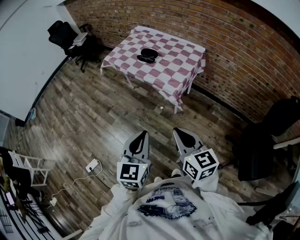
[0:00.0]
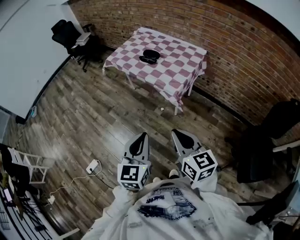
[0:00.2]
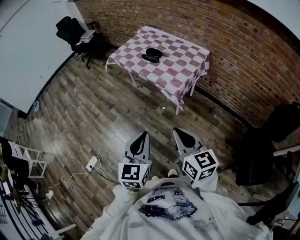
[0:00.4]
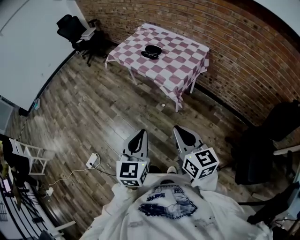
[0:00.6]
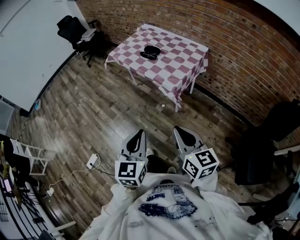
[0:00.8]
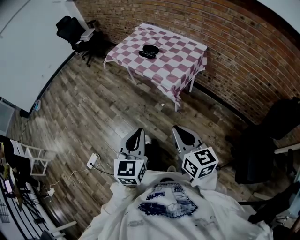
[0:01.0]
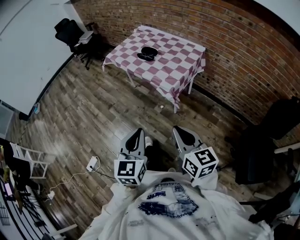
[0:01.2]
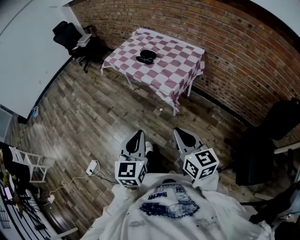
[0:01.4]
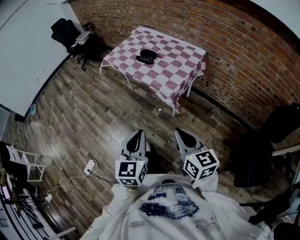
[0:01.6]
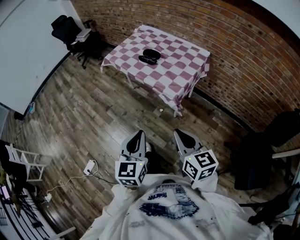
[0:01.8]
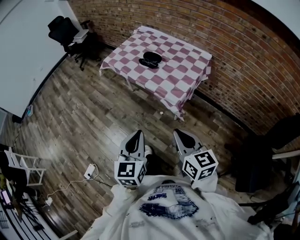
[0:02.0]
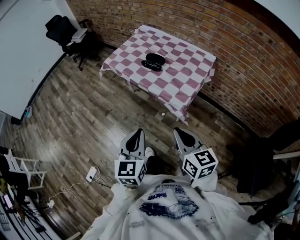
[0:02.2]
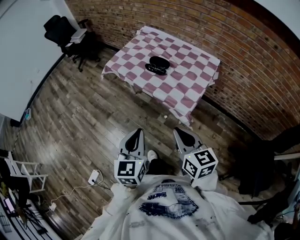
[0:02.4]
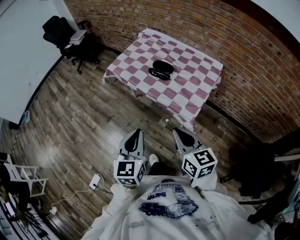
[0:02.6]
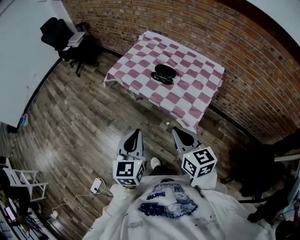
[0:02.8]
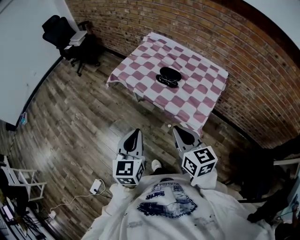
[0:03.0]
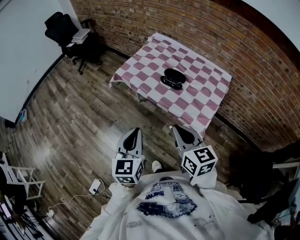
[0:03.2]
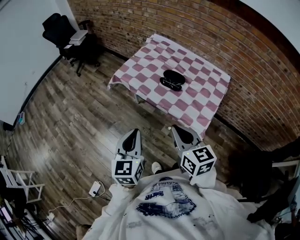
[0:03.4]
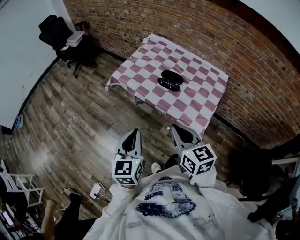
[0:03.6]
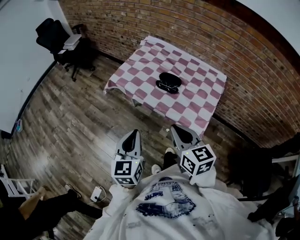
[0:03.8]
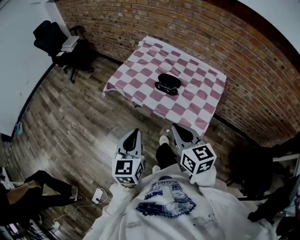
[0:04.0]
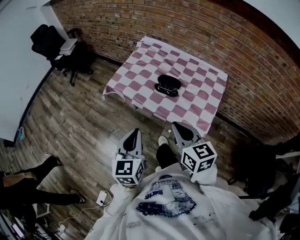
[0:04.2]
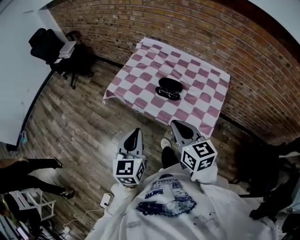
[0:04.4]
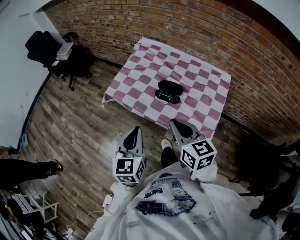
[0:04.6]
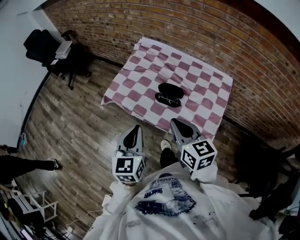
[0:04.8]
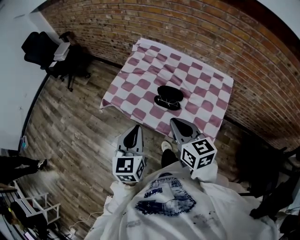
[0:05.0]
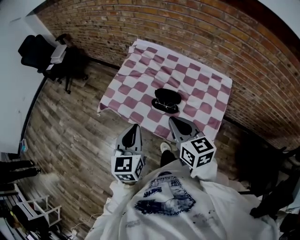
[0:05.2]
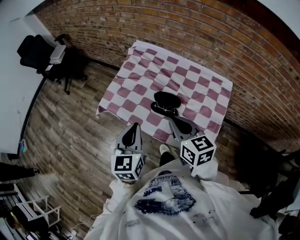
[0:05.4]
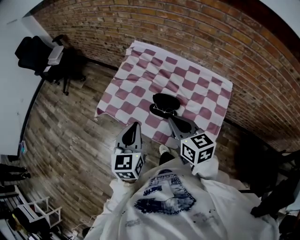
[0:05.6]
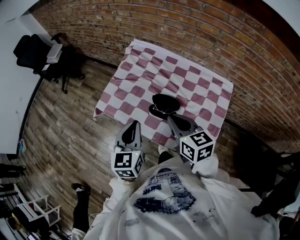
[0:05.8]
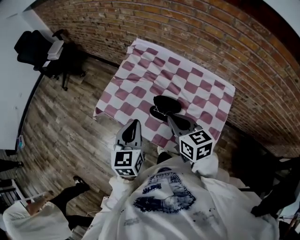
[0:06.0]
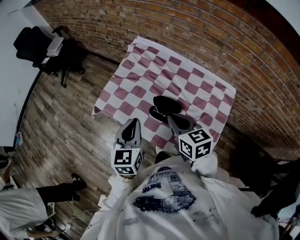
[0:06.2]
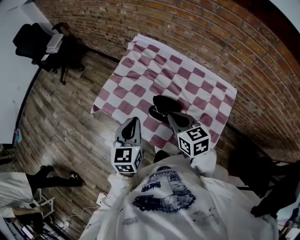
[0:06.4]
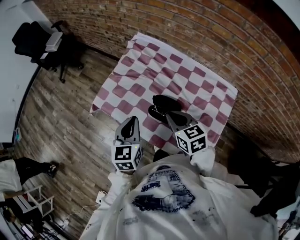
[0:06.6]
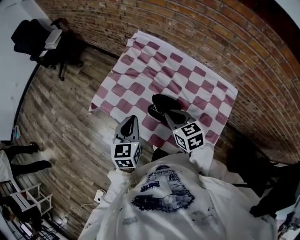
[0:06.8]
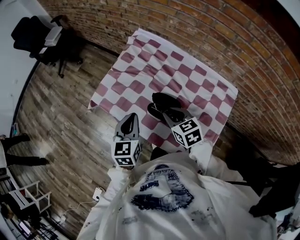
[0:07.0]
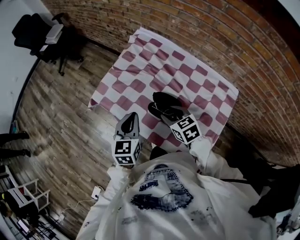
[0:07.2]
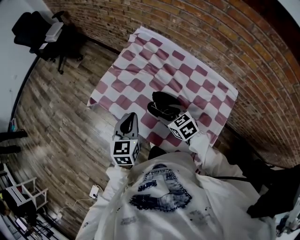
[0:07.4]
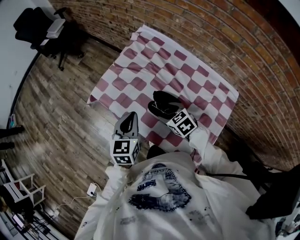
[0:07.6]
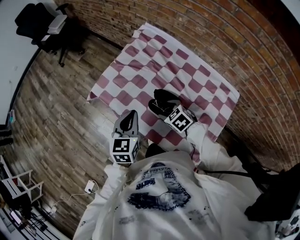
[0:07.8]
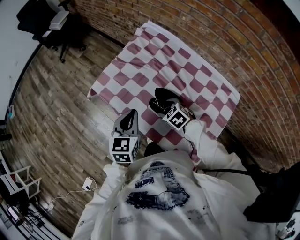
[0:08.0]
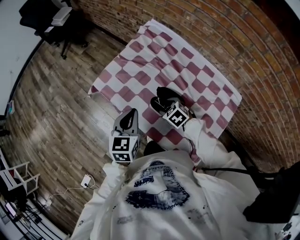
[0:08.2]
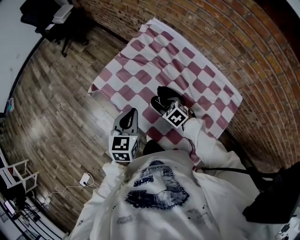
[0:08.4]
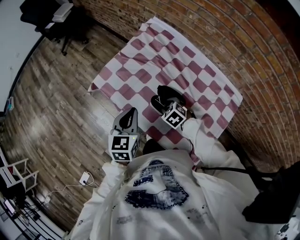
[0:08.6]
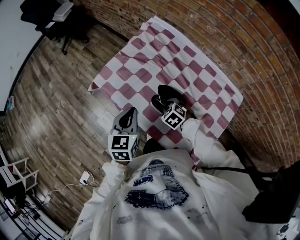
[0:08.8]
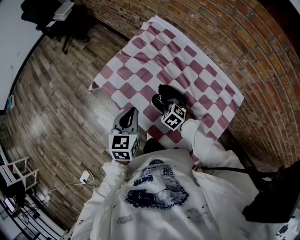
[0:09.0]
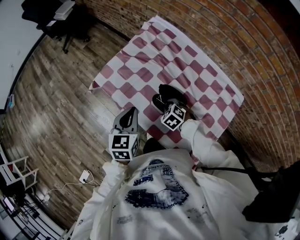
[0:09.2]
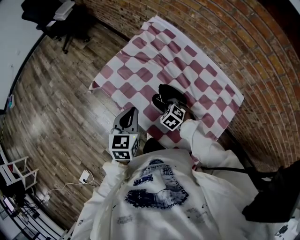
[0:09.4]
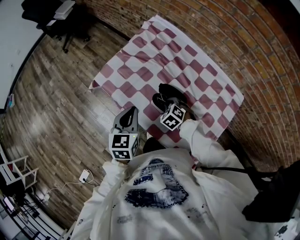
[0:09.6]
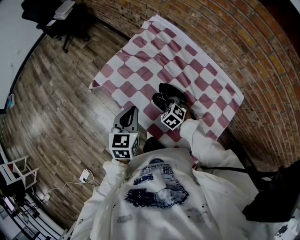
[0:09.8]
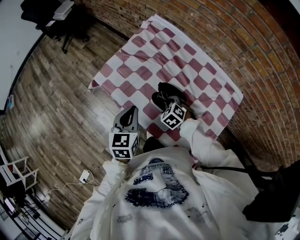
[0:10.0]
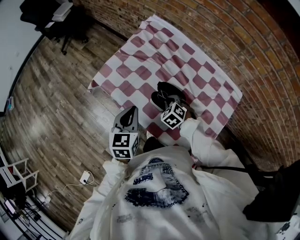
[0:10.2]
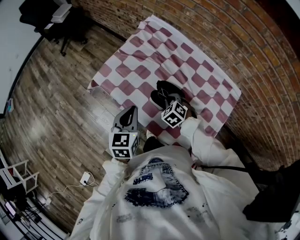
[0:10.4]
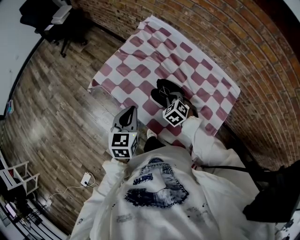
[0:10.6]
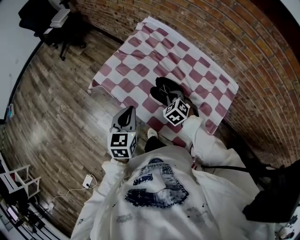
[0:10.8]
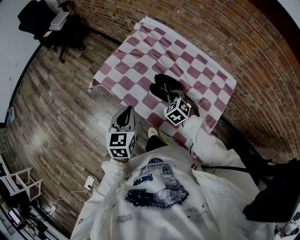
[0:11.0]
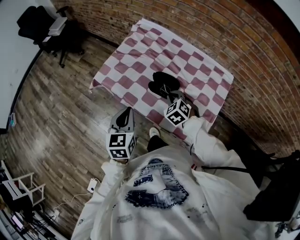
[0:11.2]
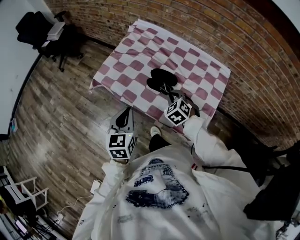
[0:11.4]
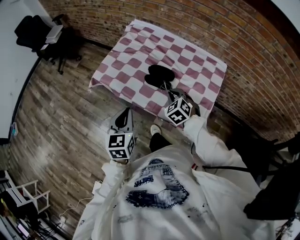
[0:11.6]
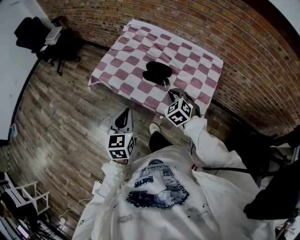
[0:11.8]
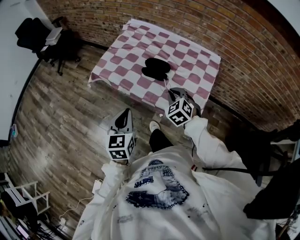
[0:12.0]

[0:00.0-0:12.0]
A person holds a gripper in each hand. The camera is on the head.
0:00.0 to 0:01.6: The right gripper changes place by about 5 cm.
0:01.6 to 0:03.0: The grippers both shift forward and to the left by about 35 cm.
0:03.0 to 0:04.4: Both grippers move forward, roughly 15 cm.
0:04.4 to 0:06.0: Both grippers travel together forward, approximately 20 cm.
0:06.0 to 0:07.6: The left gripper shifts some 10 cm downward; the right gripper heads downward, covering approximately 20 cm, swivels roughly 40 degrees, and opens.
0:07.6 to 0:09.0: The right gripper travels downward by some 10 cm, swivels about 30 degrees, and closes.
0:09.0 to 0:10.4: The grippers move only a little.
0:10.4 to 0:12.0: The right gripper goes about 25 cm backward and upward, and turns by roughly 20 degrees; the left gripper shifts roughly 20 cm backward.

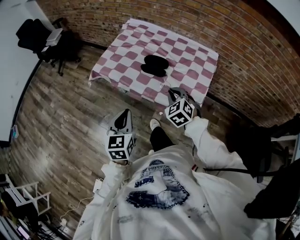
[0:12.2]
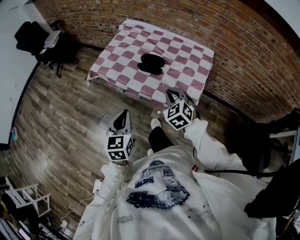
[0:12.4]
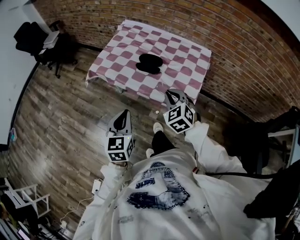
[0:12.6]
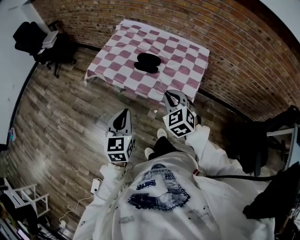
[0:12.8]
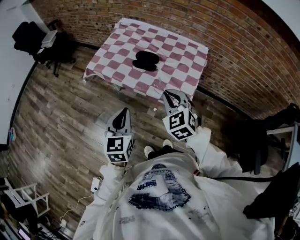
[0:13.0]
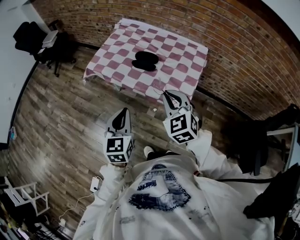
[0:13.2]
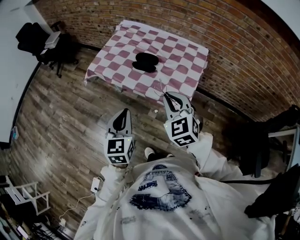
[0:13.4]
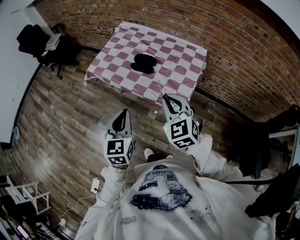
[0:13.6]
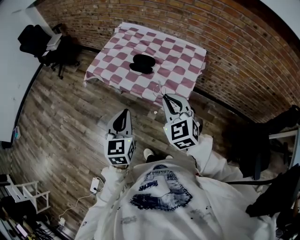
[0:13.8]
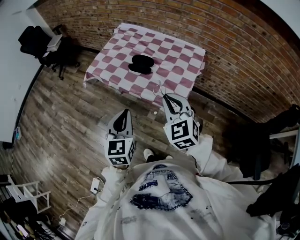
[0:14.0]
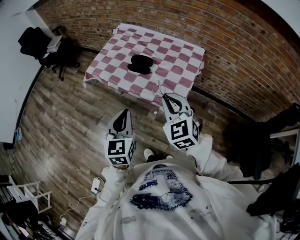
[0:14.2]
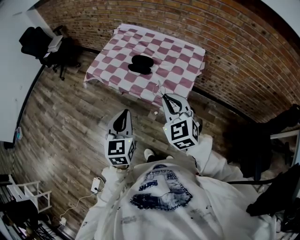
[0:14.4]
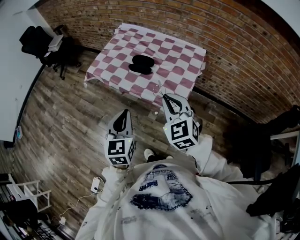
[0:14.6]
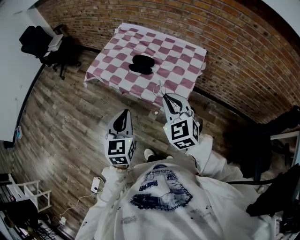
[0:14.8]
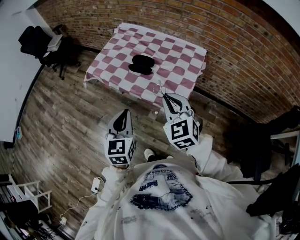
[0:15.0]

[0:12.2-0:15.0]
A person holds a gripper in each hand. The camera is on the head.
0:12.2 to 0:13.6: The right gripper travels upward and backward by about 20 cm. The left gripper is displaced to the right, backward and upward by approximately 10 cm.
0:13.6 to 0:15.0: The grippers make only small movements.

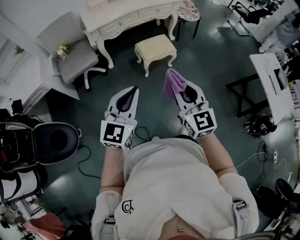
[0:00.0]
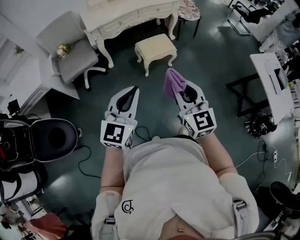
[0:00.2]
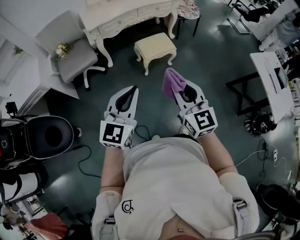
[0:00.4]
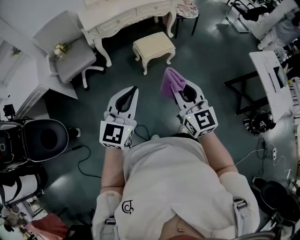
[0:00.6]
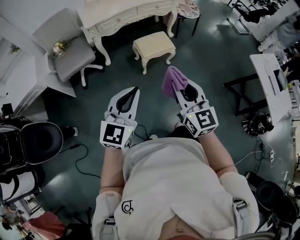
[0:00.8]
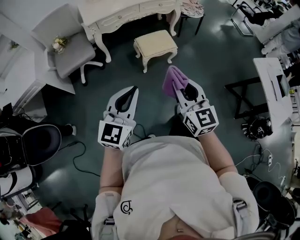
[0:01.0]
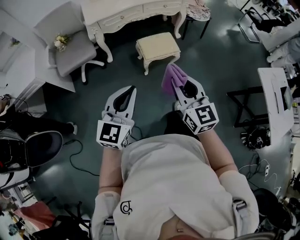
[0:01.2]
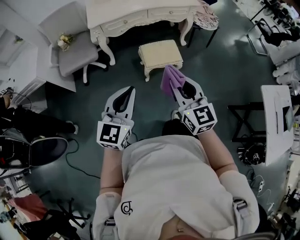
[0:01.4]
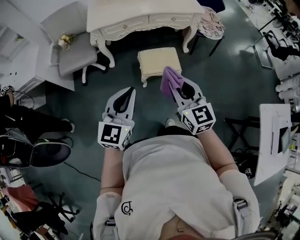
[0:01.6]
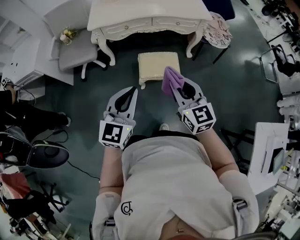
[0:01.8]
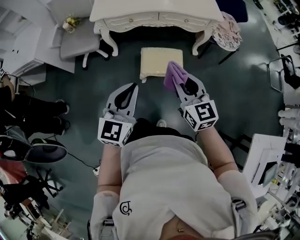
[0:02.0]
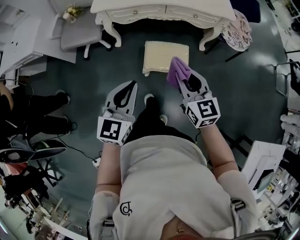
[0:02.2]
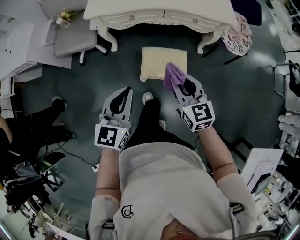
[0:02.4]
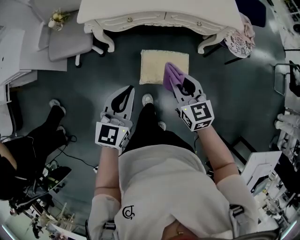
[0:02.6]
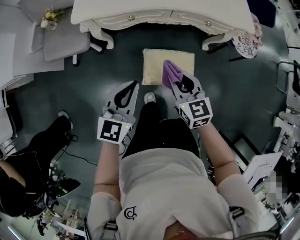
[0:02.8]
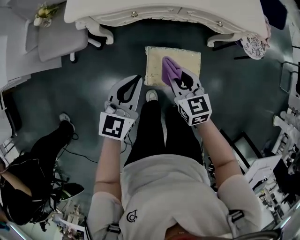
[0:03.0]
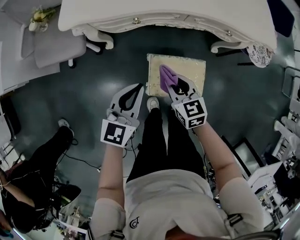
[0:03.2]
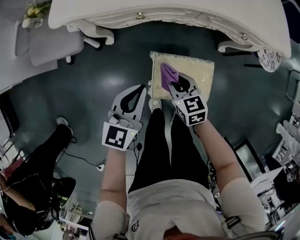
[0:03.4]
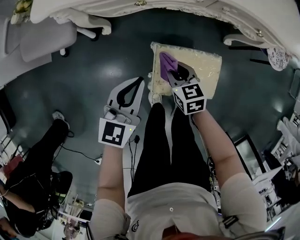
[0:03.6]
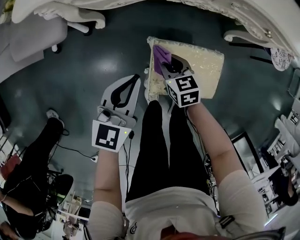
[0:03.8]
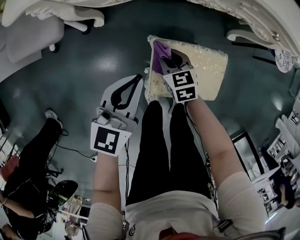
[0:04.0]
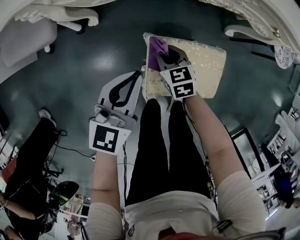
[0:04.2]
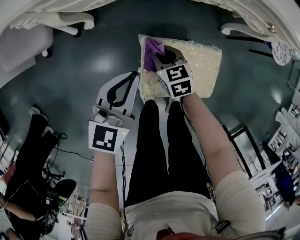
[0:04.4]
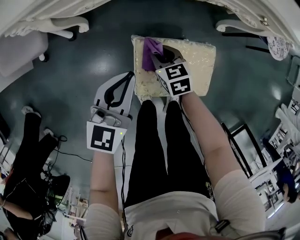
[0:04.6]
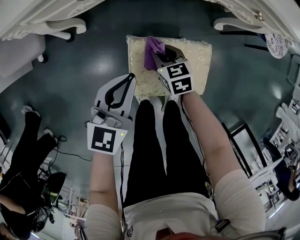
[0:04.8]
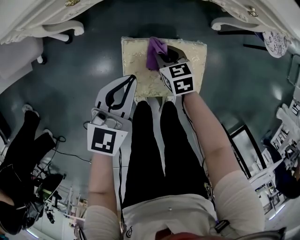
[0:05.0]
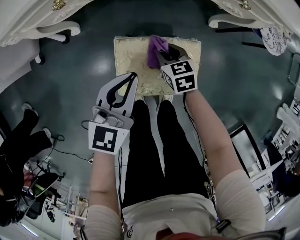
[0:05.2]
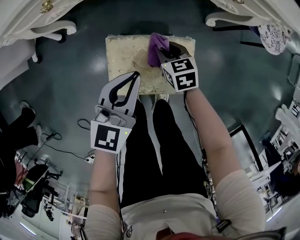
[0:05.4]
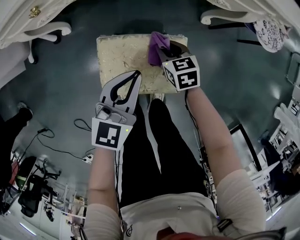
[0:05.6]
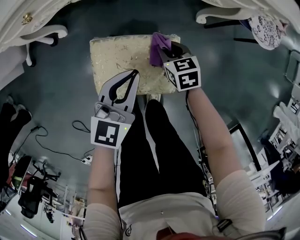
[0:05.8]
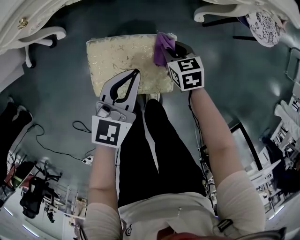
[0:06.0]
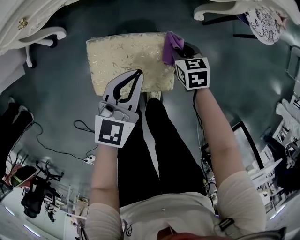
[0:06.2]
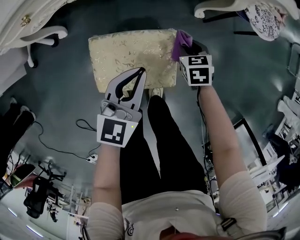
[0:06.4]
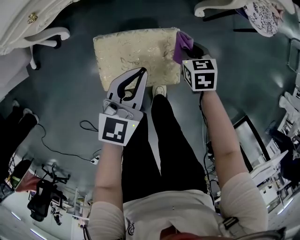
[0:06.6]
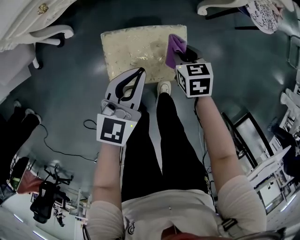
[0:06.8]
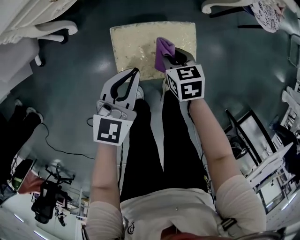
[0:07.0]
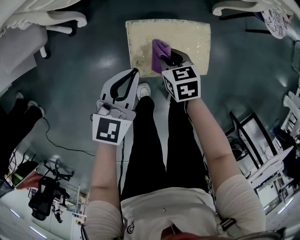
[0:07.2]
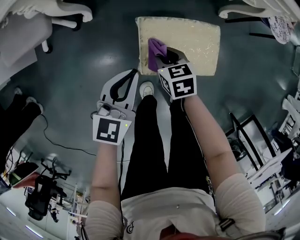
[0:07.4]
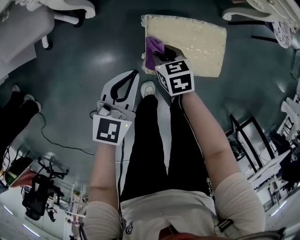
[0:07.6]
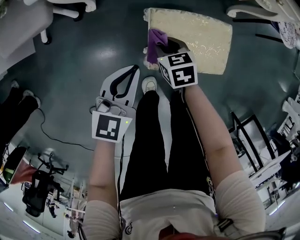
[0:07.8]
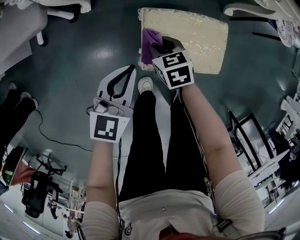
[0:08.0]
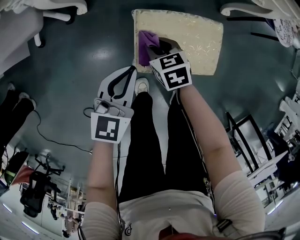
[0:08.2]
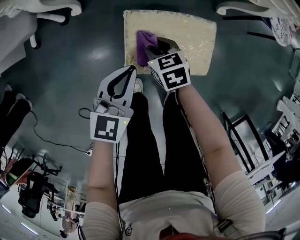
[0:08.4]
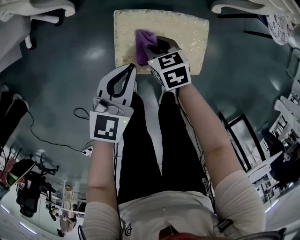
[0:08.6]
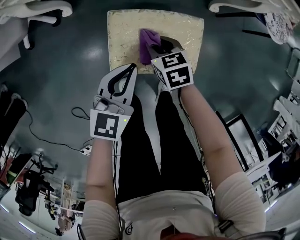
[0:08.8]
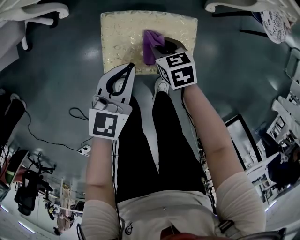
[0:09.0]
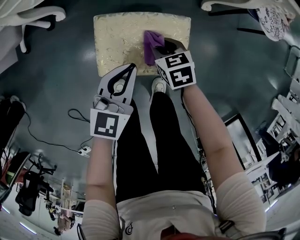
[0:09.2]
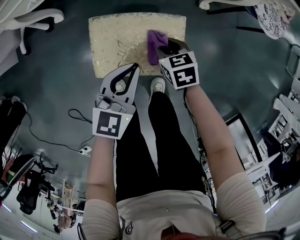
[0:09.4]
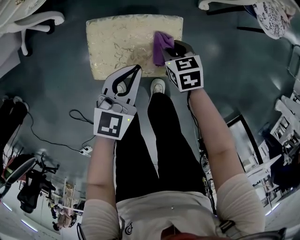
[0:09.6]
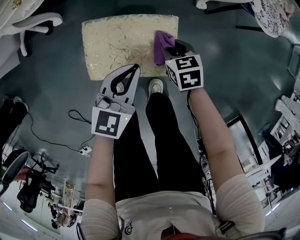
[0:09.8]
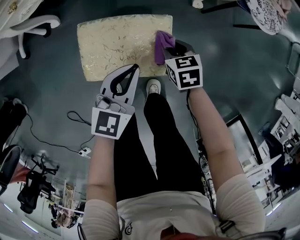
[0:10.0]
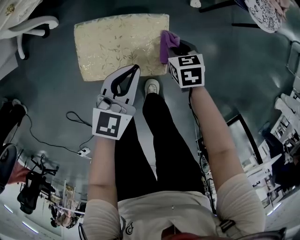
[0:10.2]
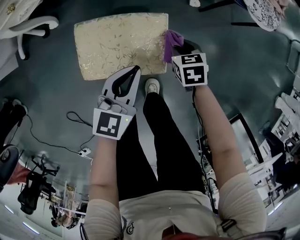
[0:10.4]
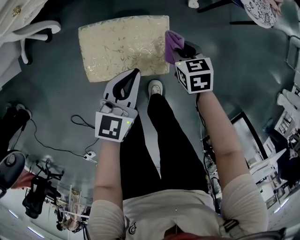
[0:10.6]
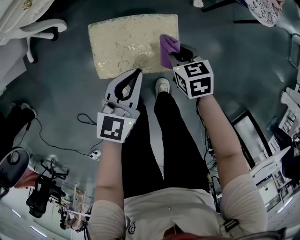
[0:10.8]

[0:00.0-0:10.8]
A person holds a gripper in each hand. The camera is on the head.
0:00.0 to 0:01.6: The left gripper is displaced forward and to the right by some 25 cm. Meanwhile the right gripper goes approximately 25 cm forward.
0:01.6 to 0:03.0: Both grippers travel together forward and downward, roughly 40 cm. The right gripper changes its angle by roughly 20 degrees.
0:03.0 to 0:04.6: Both grippers move downward, some 25 cm. The right gripper rotates roughly 20 degrees.
0:04.6 to 0:06.2: Both grippers travel together to the right, approximately 25 cm.
0:06.2 to 0:07.8: Both grippers travel together to the left, approximately 30 cm.
0:07.8 to 0:09.2: Both grippers travel together to the right, about 20 cm.
0:09.2 to 0:10.8: The right gripper goes some 10 cm to the right and upward. Meanwhile the left gripper shifts roughly 5 cm to the right.
